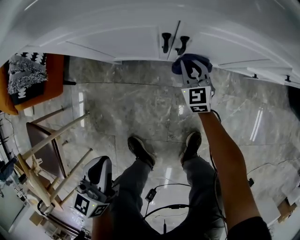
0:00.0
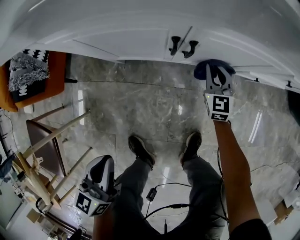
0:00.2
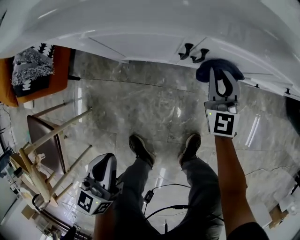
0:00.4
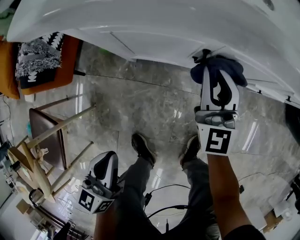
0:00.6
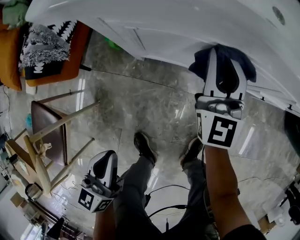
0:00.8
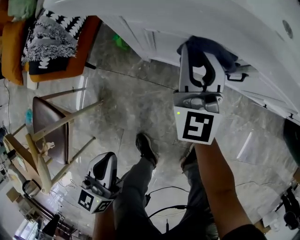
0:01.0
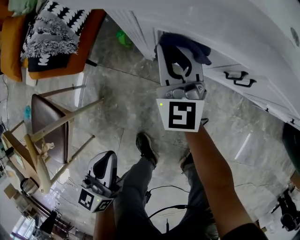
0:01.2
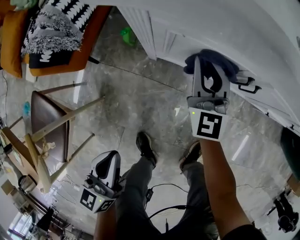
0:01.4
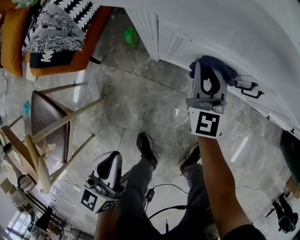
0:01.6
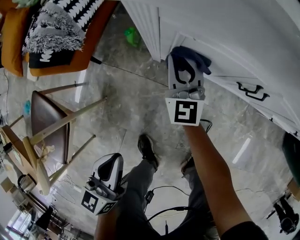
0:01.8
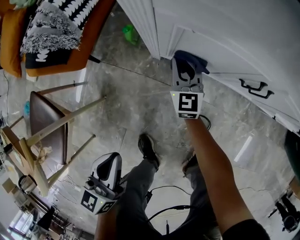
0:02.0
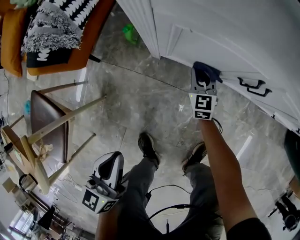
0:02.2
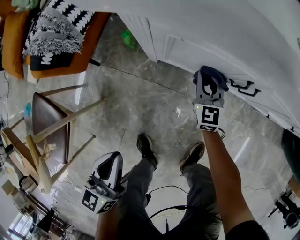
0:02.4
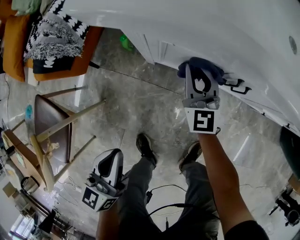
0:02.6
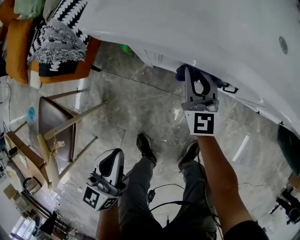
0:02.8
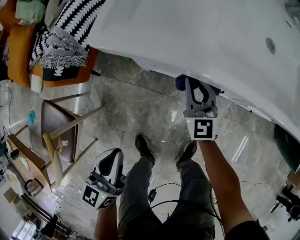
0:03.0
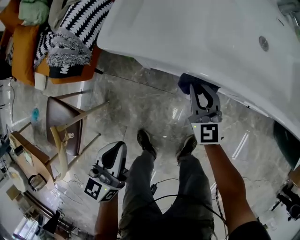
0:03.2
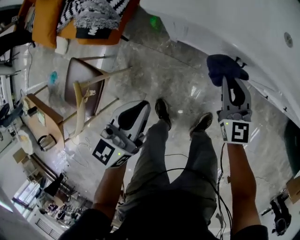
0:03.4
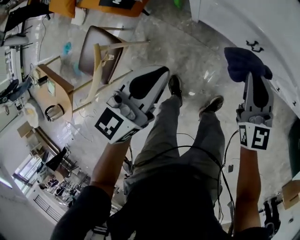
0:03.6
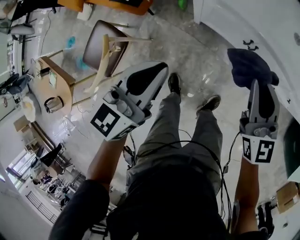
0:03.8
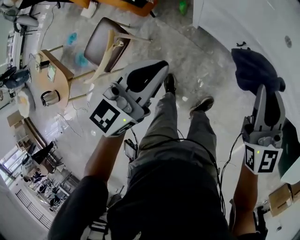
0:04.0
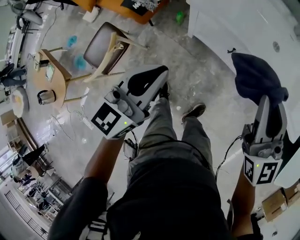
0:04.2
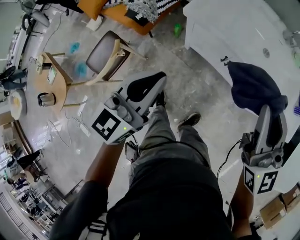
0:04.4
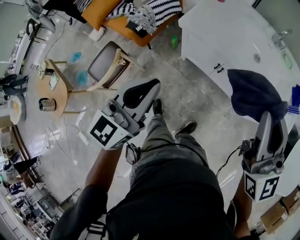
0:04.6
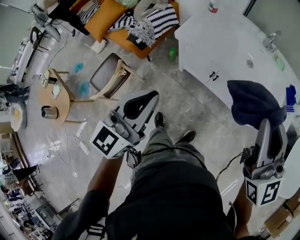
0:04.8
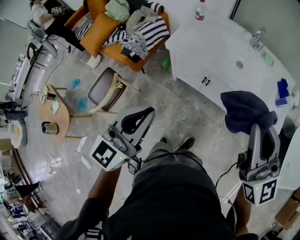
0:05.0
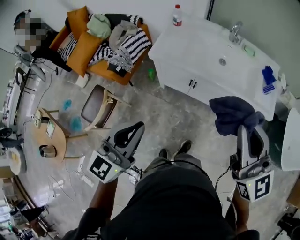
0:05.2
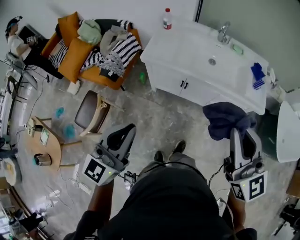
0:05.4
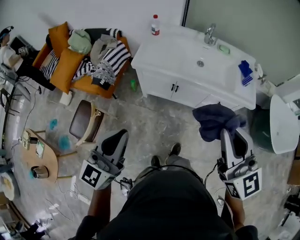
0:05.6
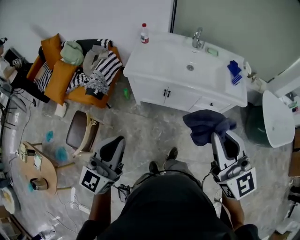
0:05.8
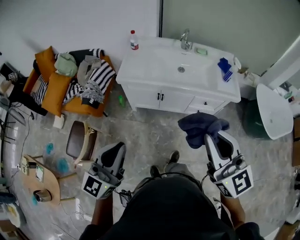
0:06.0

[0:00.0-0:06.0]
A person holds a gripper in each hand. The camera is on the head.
0:00.0 to 0:01.6: The left gripper is displaced to the left by some 15 cm, while the right gripper moves left and right over about 35 cm, changing direction 2 times, and turns by roughly 20 degrees.
0:01.6 to 0:03.0: The right gripper travels downward and back again, approximately 20 cm each way, while the left gripper is displaced upward by some 10 cm.
0:03.0 to 0:04.4: The right gripper goes some 60 cm upward and backward, and turns by some 30 degrees. The left gripper goes approximately 35 cm upward, and changes its angle by some 20 degrees.
0:04.4 to 0:06.0: The left gripper moves backward and upward, roughly 20 cm, and swivels about 20 degrees, while the right gripper goes about 25 cm backward.

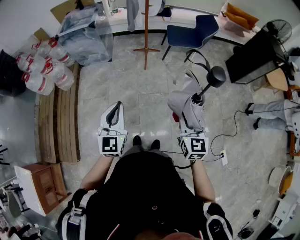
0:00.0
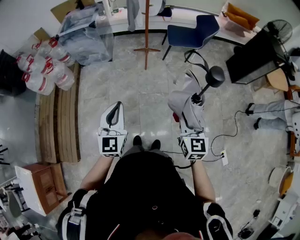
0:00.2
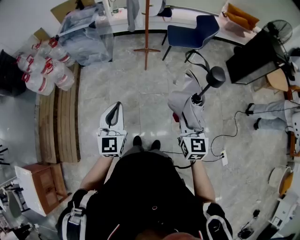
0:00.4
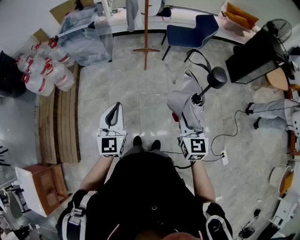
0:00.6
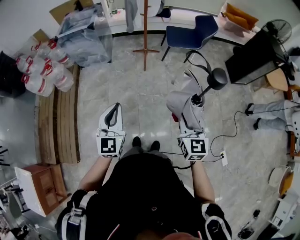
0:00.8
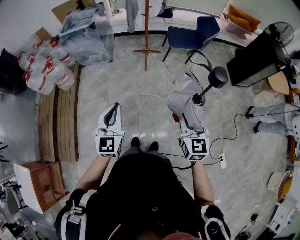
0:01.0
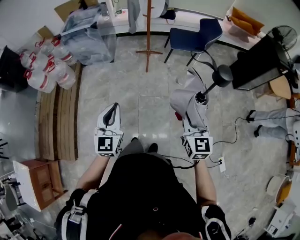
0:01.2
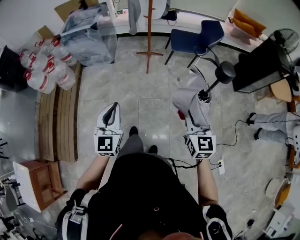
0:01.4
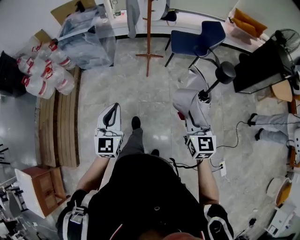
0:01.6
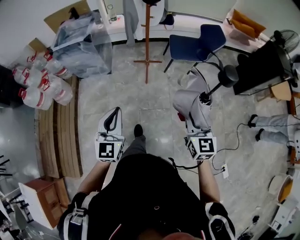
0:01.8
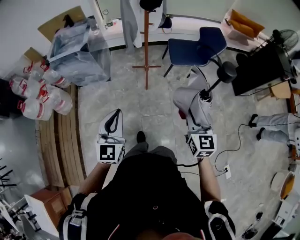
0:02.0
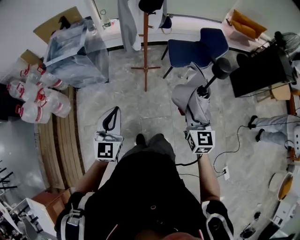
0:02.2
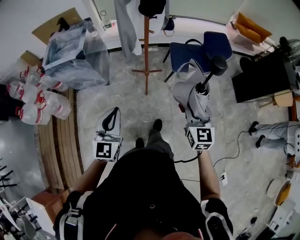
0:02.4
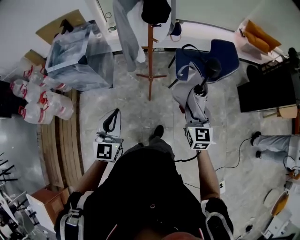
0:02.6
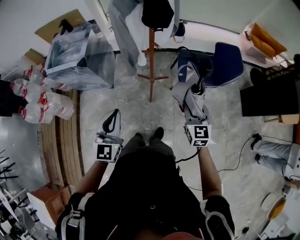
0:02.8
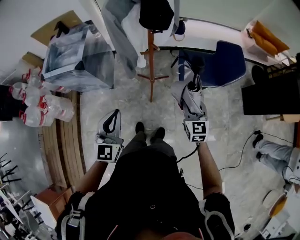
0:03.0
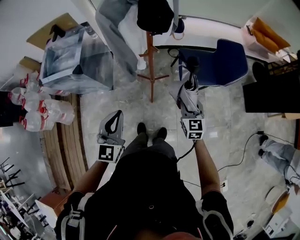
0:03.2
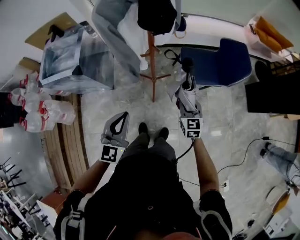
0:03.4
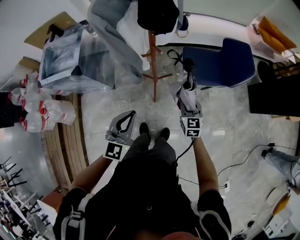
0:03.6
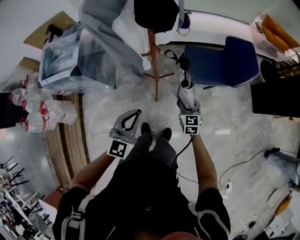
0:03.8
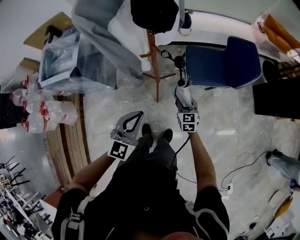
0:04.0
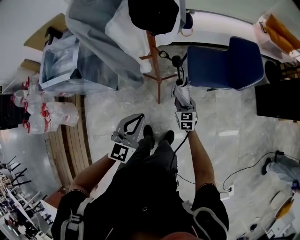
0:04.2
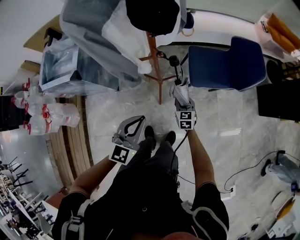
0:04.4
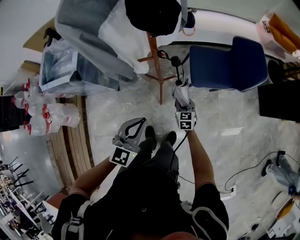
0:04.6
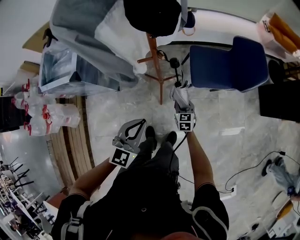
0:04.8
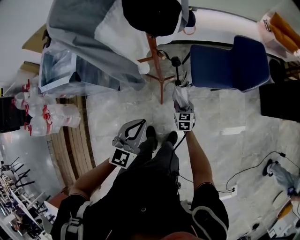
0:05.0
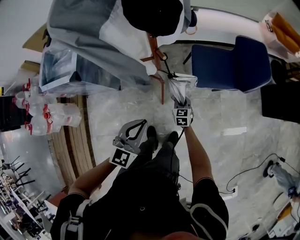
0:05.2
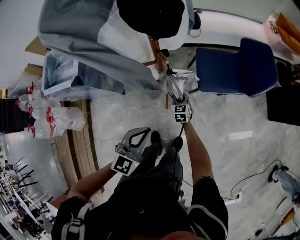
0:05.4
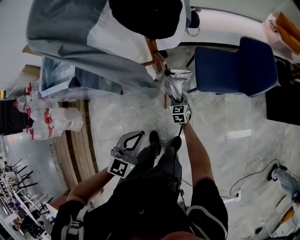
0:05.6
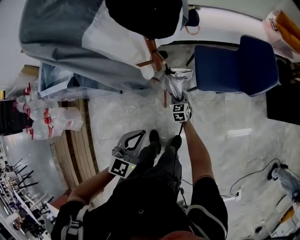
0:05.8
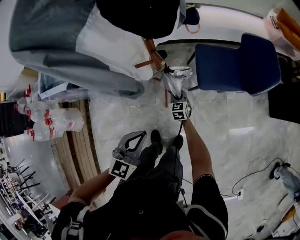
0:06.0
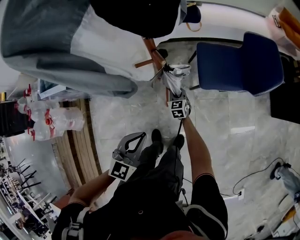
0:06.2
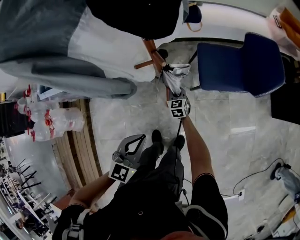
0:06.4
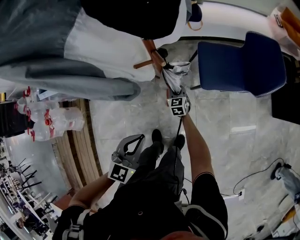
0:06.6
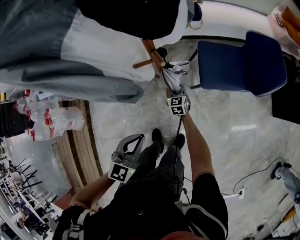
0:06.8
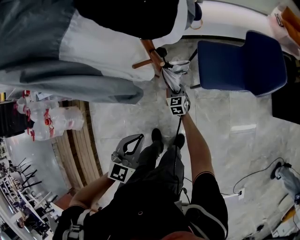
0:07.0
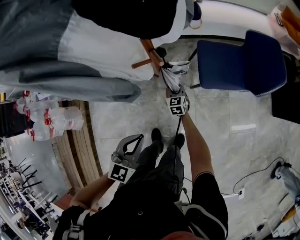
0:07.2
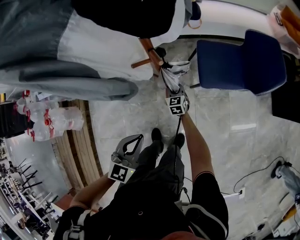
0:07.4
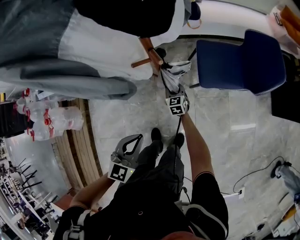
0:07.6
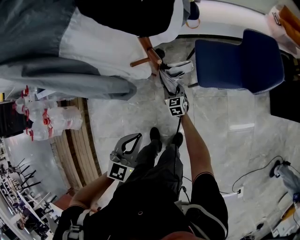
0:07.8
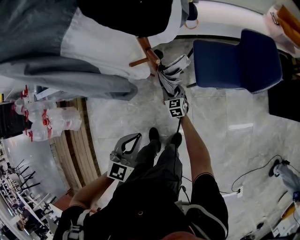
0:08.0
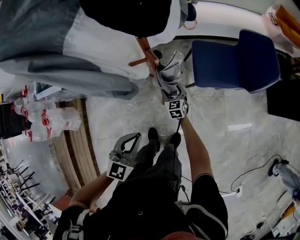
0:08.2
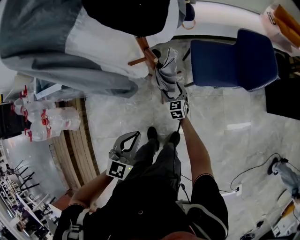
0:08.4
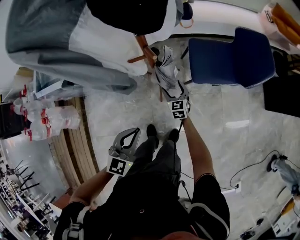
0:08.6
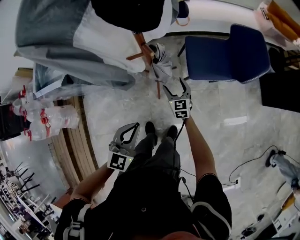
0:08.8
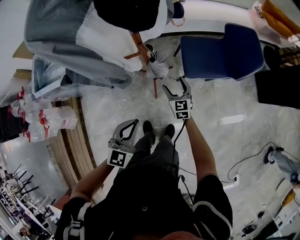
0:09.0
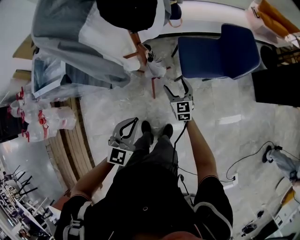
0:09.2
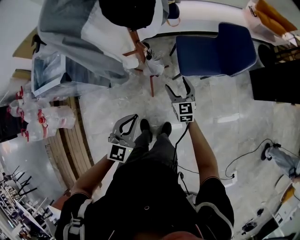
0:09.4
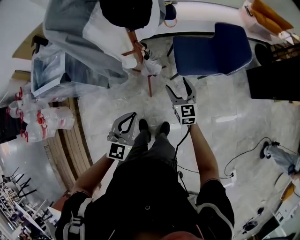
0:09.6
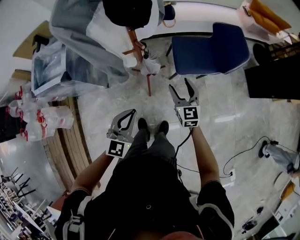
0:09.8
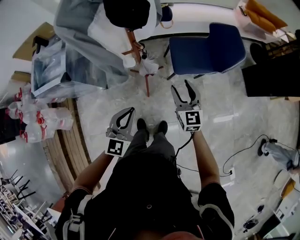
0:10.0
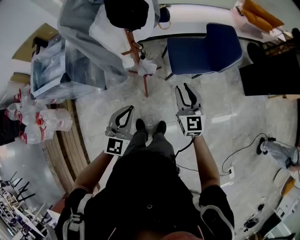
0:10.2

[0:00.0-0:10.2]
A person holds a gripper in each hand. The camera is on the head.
0:00.0 to 0:01.4: The left gripper moves approximately 5 cm. The right gripper is displaced forward by approximately 5 cm.
0:01.4 to 0:03.0: Both grippers are carried forward, some 50 cm.
0:03.0 to 0:04.4: The left gripper heads downward, forward and to the right, covering some 15 cm, and changes its angle by roughly 20 degrees. Meanwhile the right gripper travels downward by some 25 cm.
0:04.4 to 0:05.8: The right gripper heads downward, to the left and forward, covering approximately 15 cm. The left gripper goes approximately 5 cm downward.
0:05.8 to 0:07.2: The right gripper changes place by roughly 5 cm.
0:07.2 to 0:08.8: The right gripper goes some 15 cm upward, to the right and backward, and opens up.
0:08.8 to 0:10.2: The right gripper is displaced upward by approximately 30 cm, and closes, while the left gripper is displaced upward by some 10 cm.

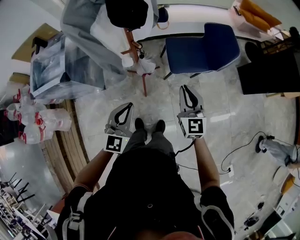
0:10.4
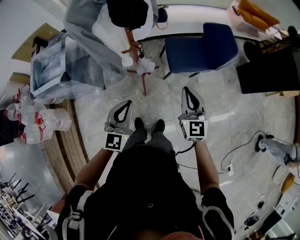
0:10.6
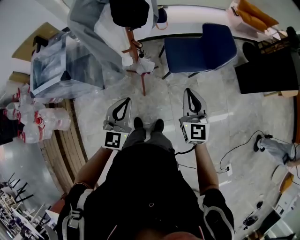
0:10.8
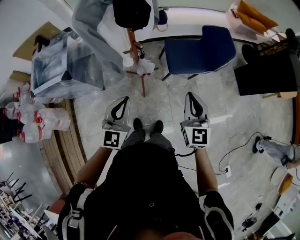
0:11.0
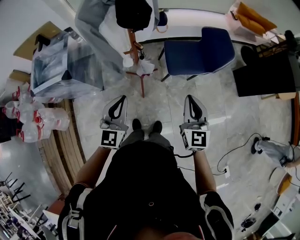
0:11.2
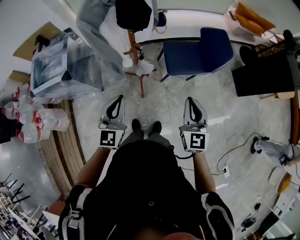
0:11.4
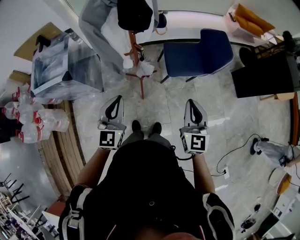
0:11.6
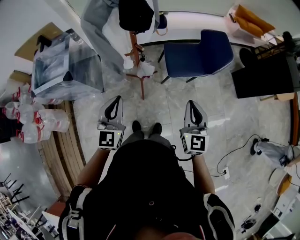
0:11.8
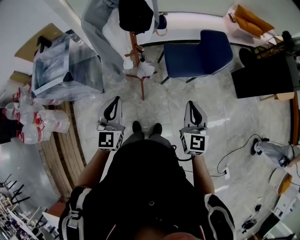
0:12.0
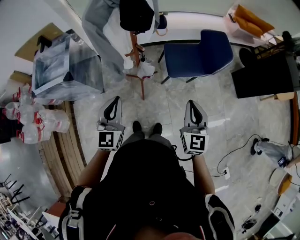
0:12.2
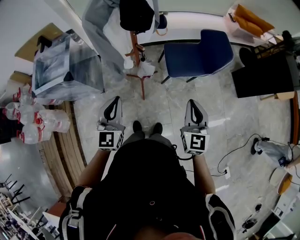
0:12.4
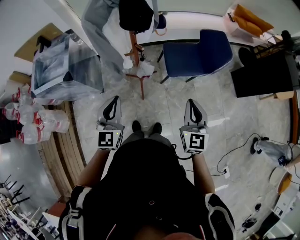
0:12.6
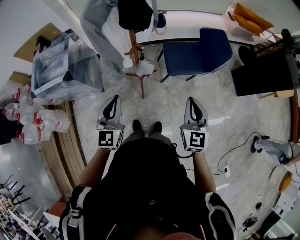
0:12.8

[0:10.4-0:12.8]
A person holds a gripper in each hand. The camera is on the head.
0:10.4 to 0:11.6: The left gripper shifts by approximately 5 cm. The right gripper moves backward and upward, approximately 10 cm.
0:11.6 to 0:12.8: The grippers move only a little.

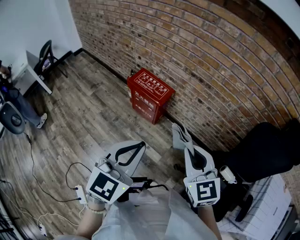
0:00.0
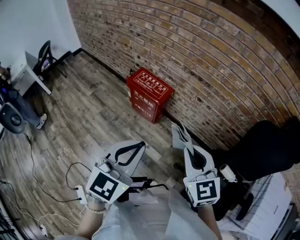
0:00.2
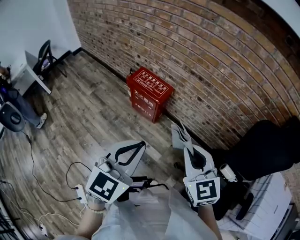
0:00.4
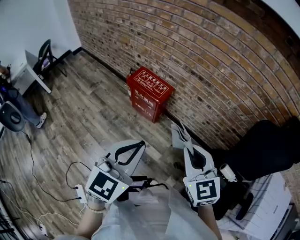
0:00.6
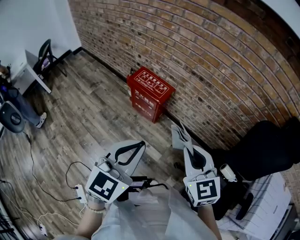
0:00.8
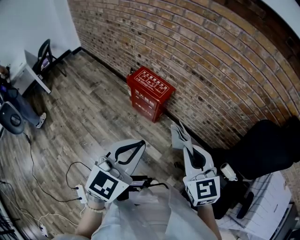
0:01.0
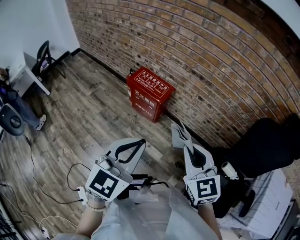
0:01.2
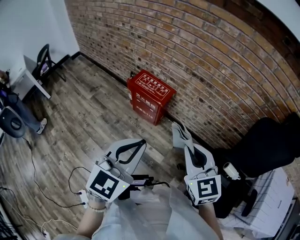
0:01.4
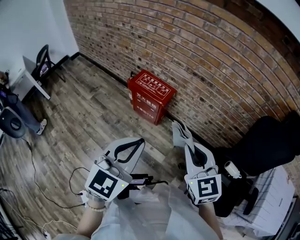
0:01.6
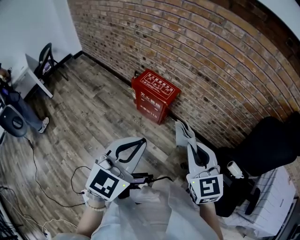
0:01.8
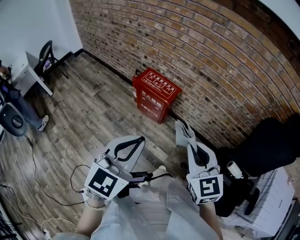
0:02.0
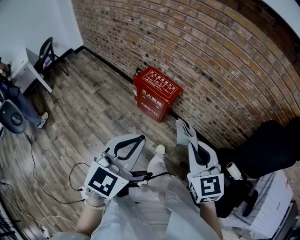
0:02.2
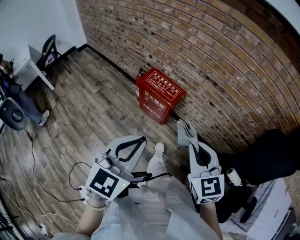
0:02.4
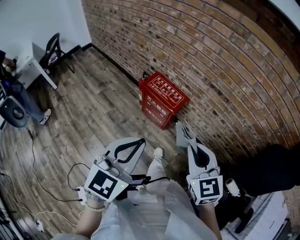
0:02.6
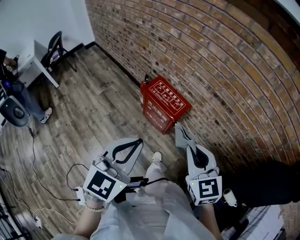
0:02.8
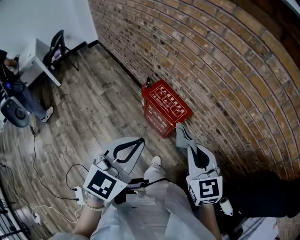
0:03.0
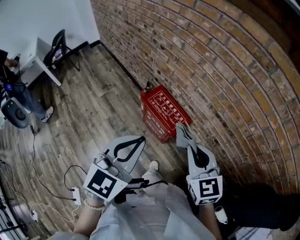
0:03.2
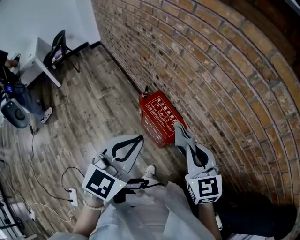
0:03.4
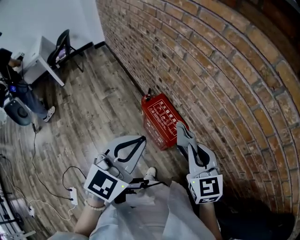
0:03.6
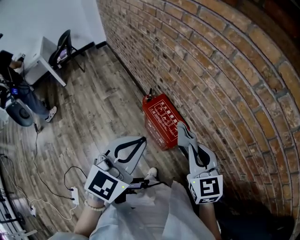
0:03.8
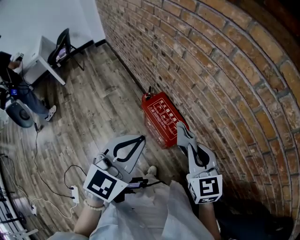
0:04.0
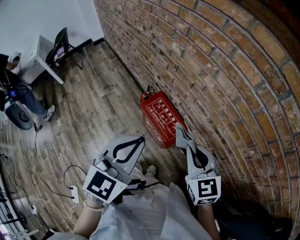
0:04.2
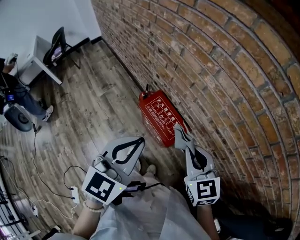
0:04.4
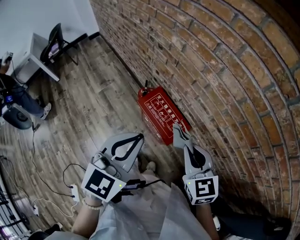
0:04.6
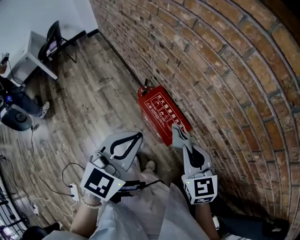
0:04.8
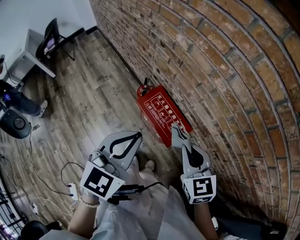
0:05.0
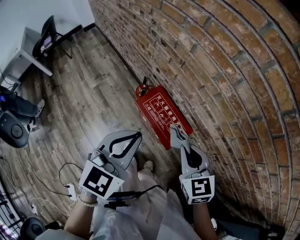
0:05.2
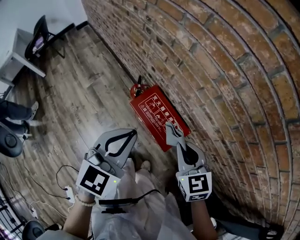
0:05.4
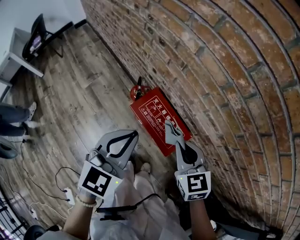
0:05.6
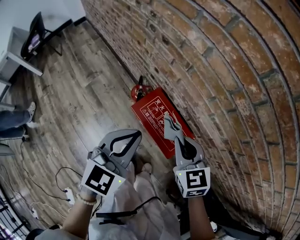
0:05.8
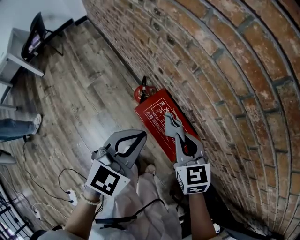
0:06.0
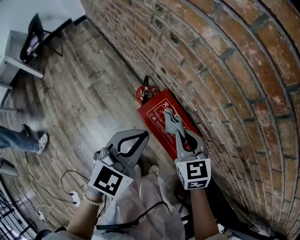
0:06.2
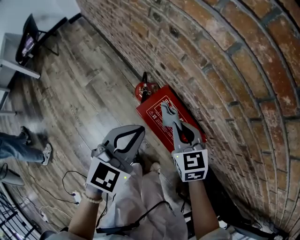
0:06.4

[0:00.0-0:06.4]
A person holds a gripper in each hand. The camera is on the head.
0:00.0 to 0:01.6: The left gripper shifts by about 5 cm.
0:01.6 to 0:03.2: The two grippers go roughly 30 cm forward.
0:03.2 to 0:04.8: The left gripper goes roughly 15 cm forward, while the right gripper travels forward and downward by about 15 cm.
0:04.8 to 0:06.4: The left gripper travels downward and forward by some 25 cm. Meanwhile the right gripper is displaced downward, forward and to the left by roughly 30 cm.
